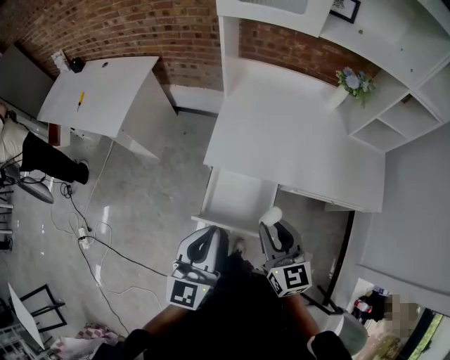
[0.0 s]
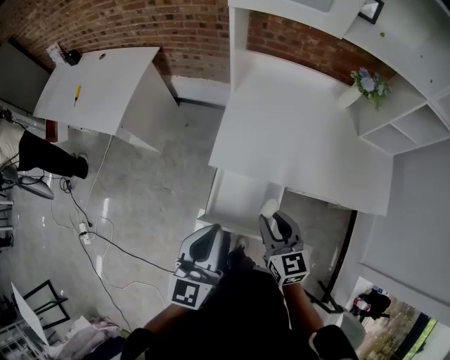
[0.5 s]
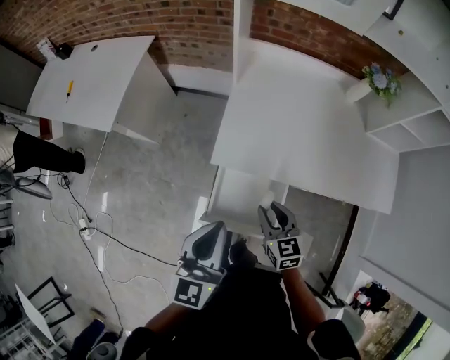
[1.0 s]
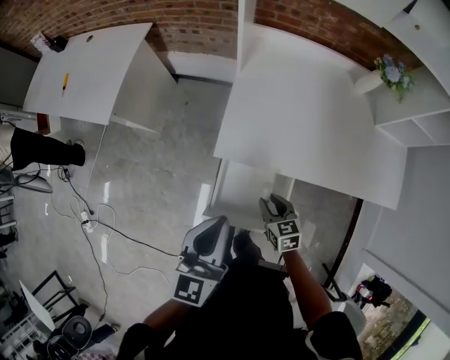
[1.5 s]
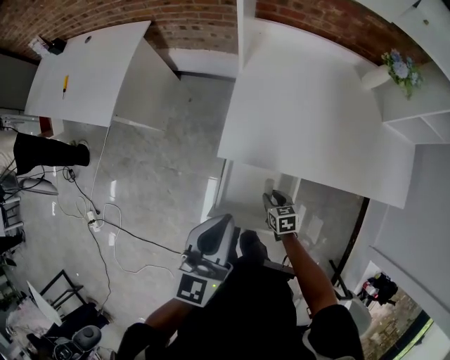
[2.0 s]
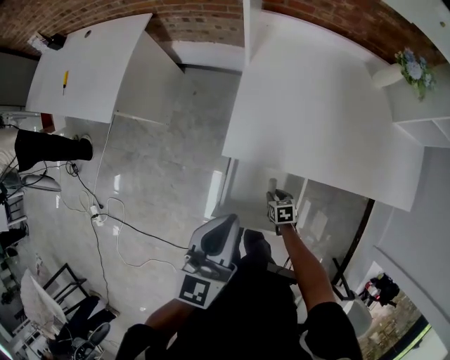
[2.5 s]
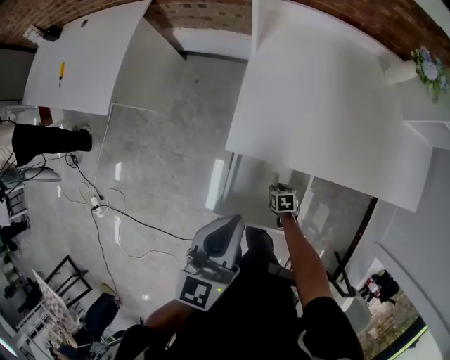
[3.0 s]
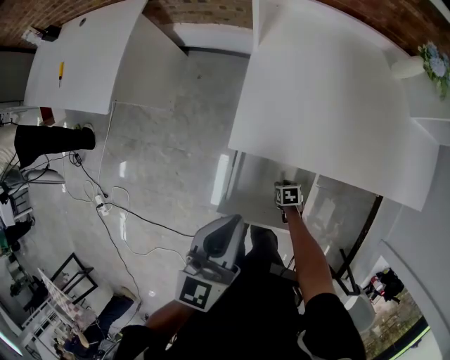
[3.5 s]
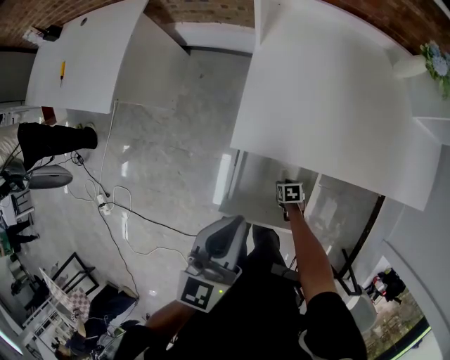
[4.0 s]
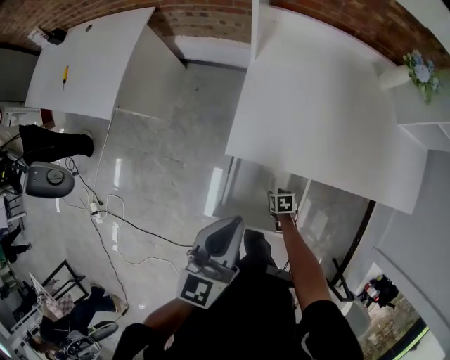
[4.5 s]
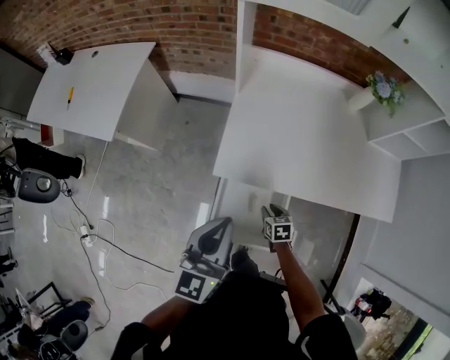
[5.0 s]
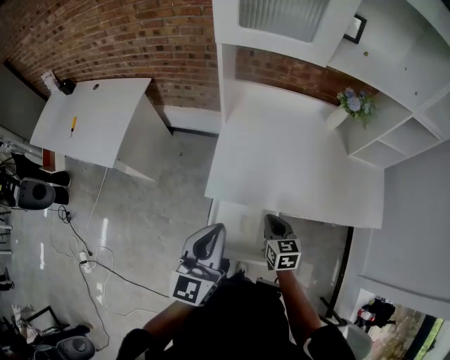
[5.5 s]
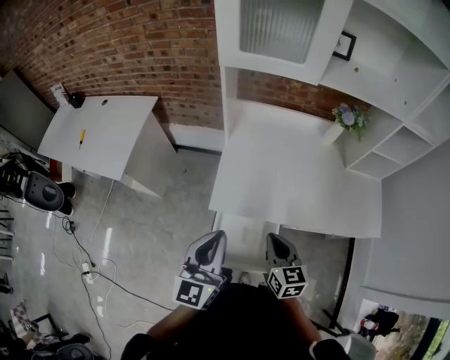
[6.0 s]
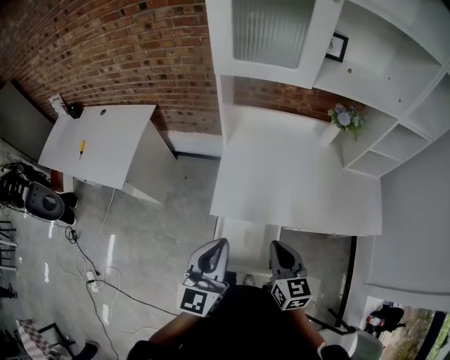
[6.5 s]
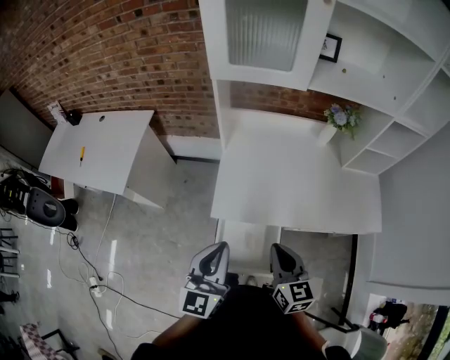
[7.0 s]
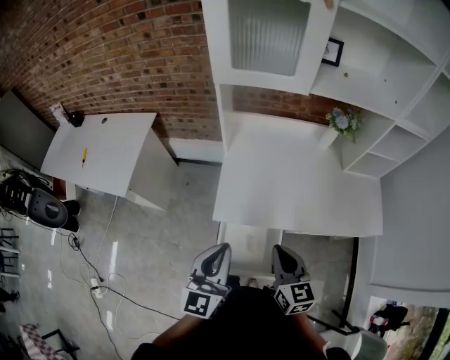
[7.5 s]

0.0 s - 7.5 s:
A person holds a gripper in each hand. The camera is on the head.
0.0 s - 2.0 s: The left gripper heads forward and downward, covering roughly 15 cm. Meanwhile the right gripper heads downward, covering about 40 cm, and tilts its fingers about 40 degrees downward.
2.0 s - 4.0 s: The right gripper goes roughly 20 cm downward, and swivels some 20 degrees. The left gripper moves downward, some 5 cm.
4.0 s - 5.5 s: The left gripper travels upward by about 15 cm, while the right gripper goes approximately 40 cm upward, angles its fingers upward, by approximately 40 degrees, and closes.
5.5 s - 7.5 s: The right gripper moves upward, roughly 20 cm.

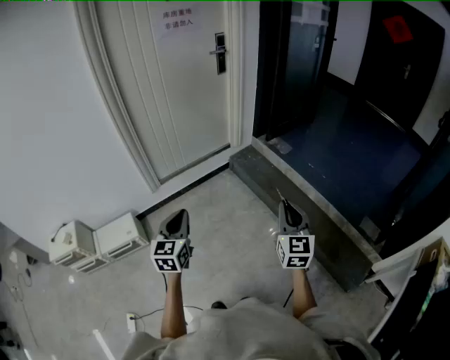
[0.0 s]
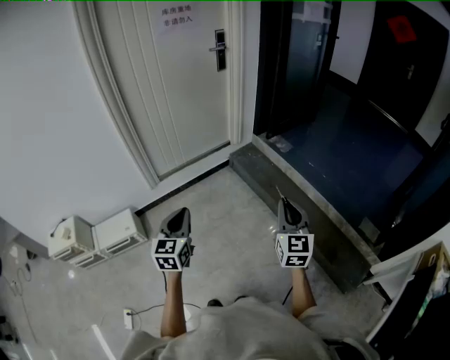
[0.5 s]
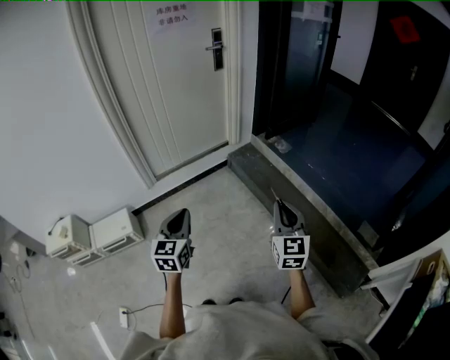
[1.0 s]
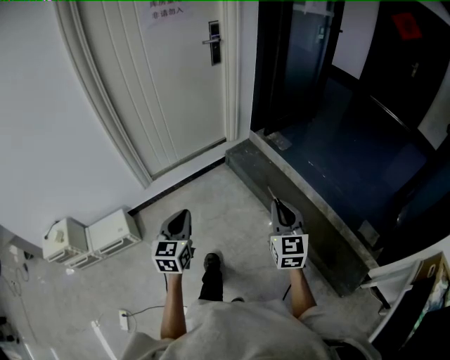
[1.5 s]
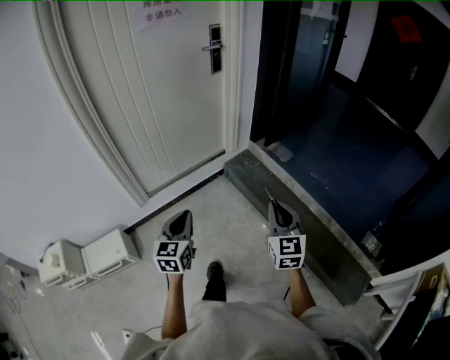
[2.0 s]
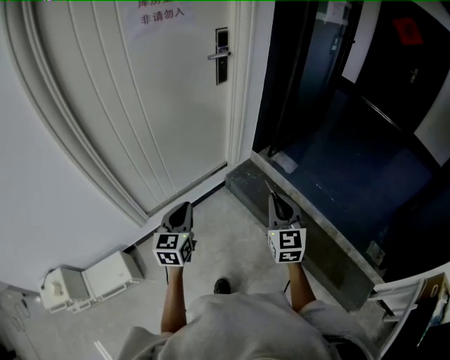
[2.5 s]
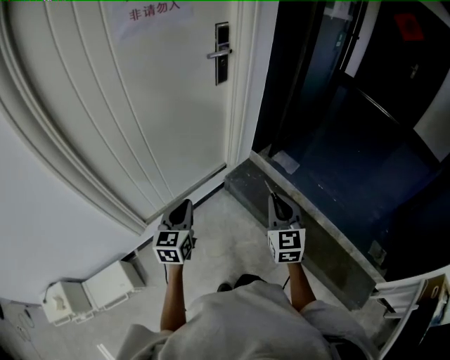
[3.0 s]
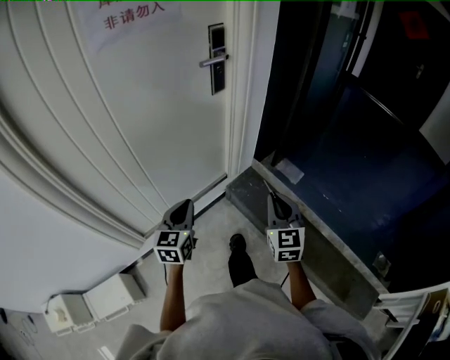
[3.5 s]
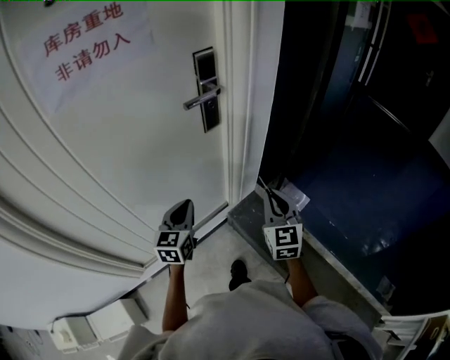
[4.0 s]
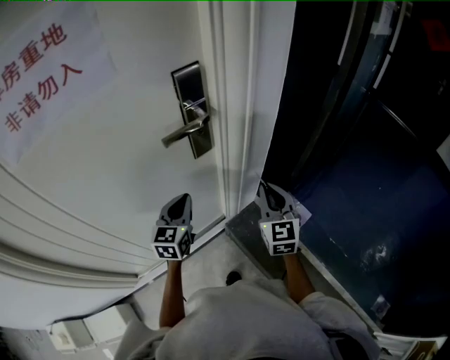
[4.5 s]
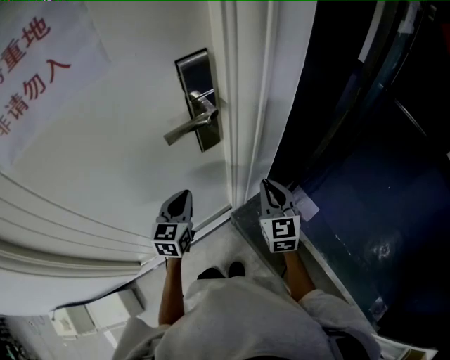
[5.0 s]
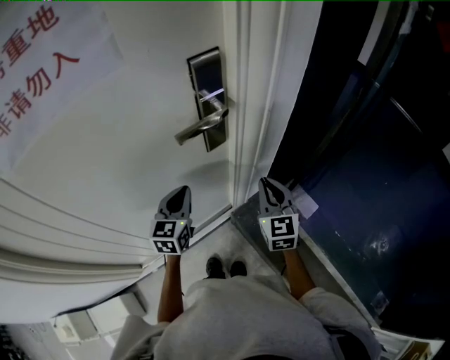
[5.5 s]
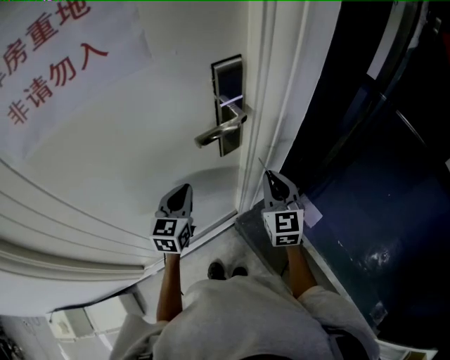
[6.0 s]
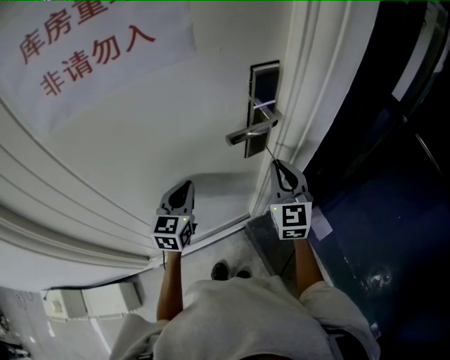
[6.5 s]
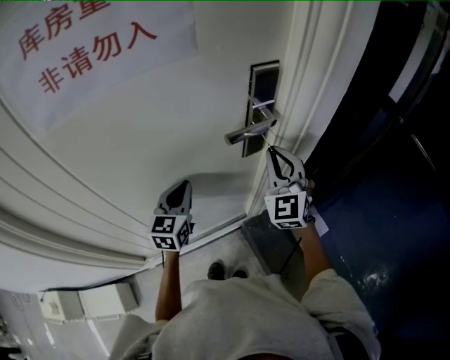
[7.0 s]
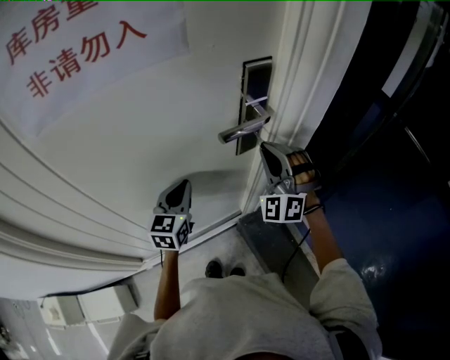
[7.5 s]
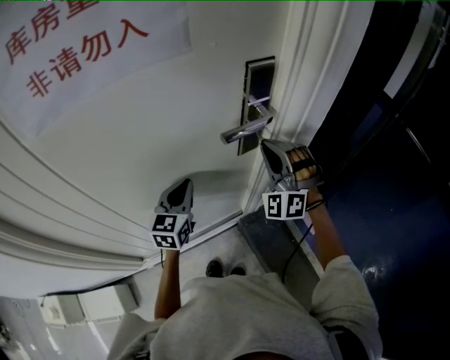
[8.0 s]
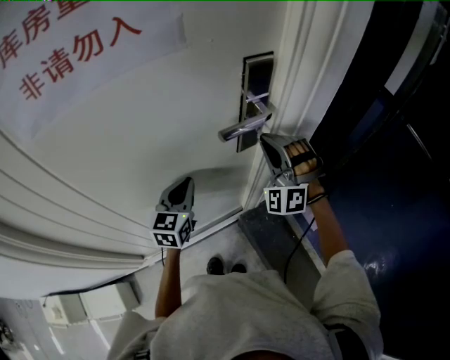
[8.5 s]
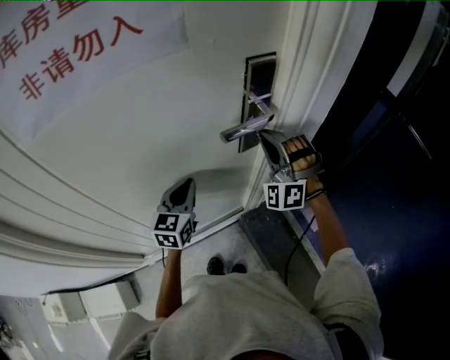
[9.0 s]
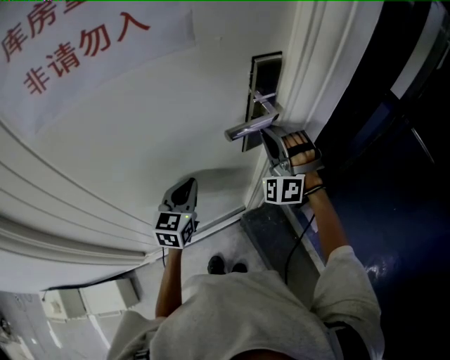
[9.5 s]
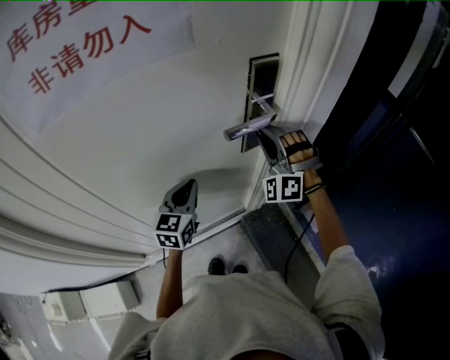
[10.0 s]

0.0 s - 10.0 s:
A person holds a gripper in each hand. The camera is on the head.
0.0 s - 2.0 s: Both grippers travel together forward, approximately 20 cm.
2.0 s - 4.0 s: The two grippers travel together, forward, some 60 cm.
4.0 s - 6.0 s: Both grippers move forward, roughly 20 cm.
6.0 s - 8.0 s: The right gripper heads to the left, upward and forward, covering approximately 10 cm, and twists approximately 70 degrees counterclockwise, seen from behind.
8.0 s - 10.0 s: The grippers move only a little.

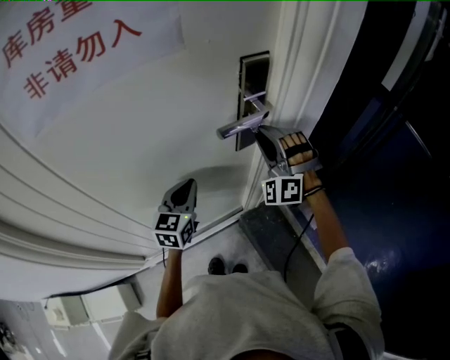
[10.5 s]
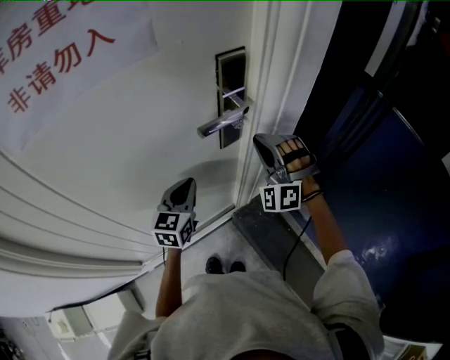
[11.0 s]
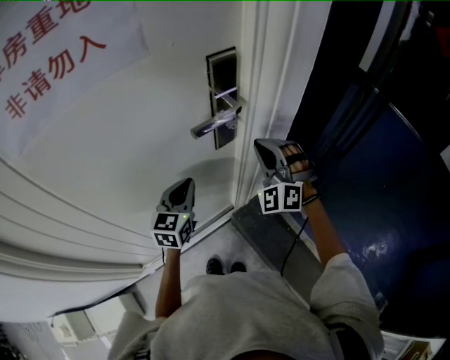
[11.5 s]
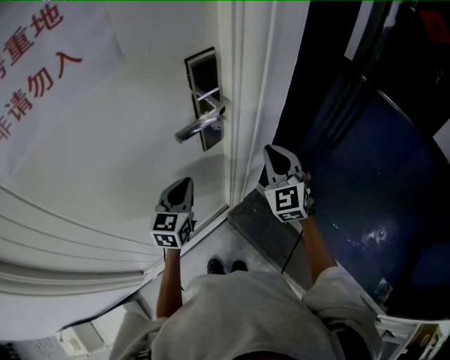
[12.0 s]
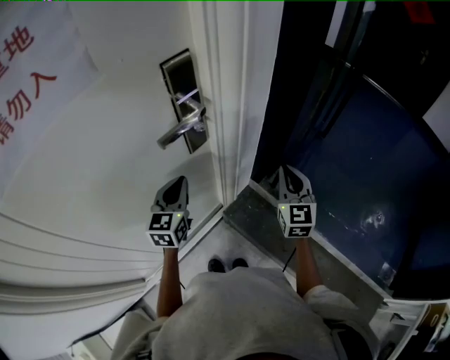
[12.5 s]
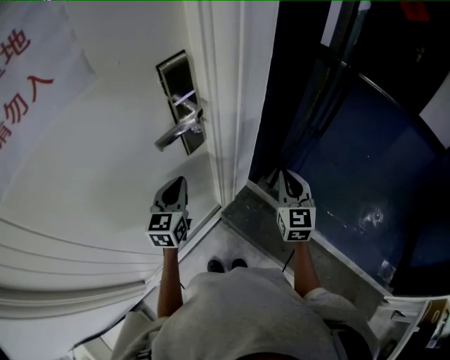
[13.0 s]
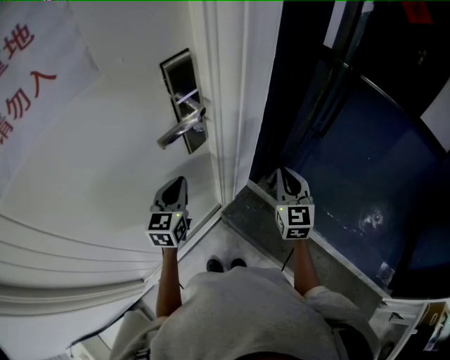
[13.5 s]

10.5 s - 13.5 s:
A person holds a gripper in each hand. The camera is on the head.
10.5 s - 12.0 s: The right gripper moves to the right and backward, about 15 cm, rolls clockwise, seen from behind, by roughly 50 degrees, and closes up, while the left gripper goes about 5 cm to the right.
12.0 s - 13.5 s: The right gripper travels to the right and downward by approximately 10 cm, and swivels approximately 30 degrees.

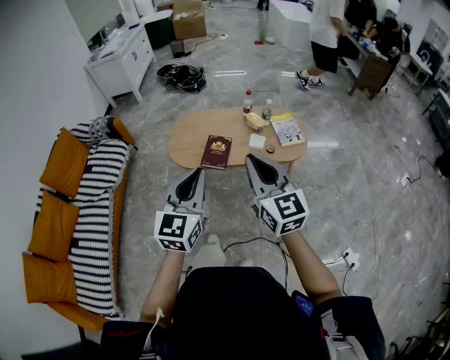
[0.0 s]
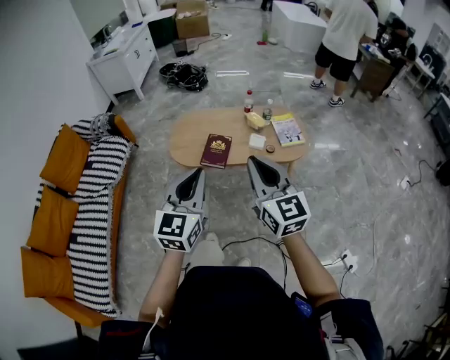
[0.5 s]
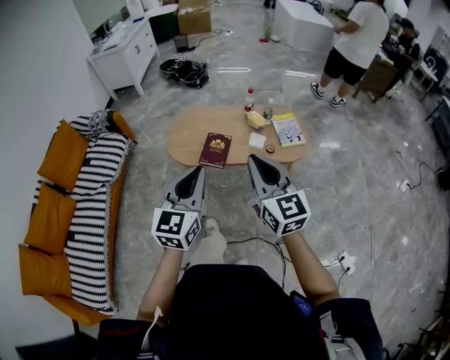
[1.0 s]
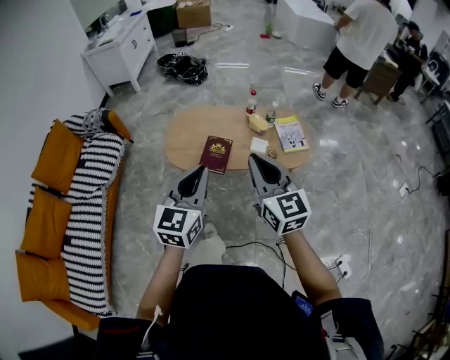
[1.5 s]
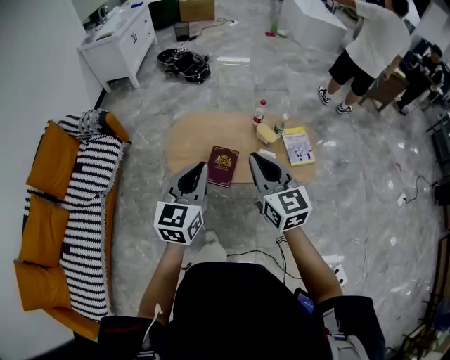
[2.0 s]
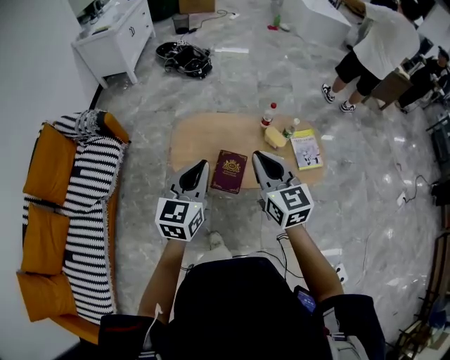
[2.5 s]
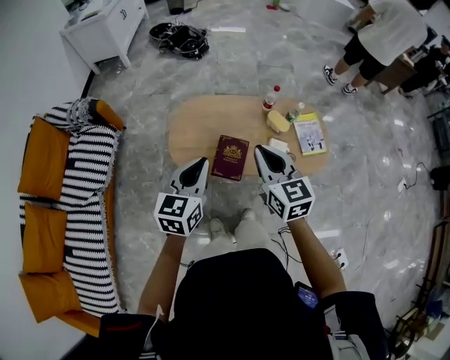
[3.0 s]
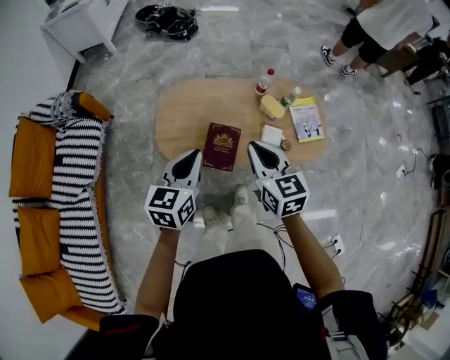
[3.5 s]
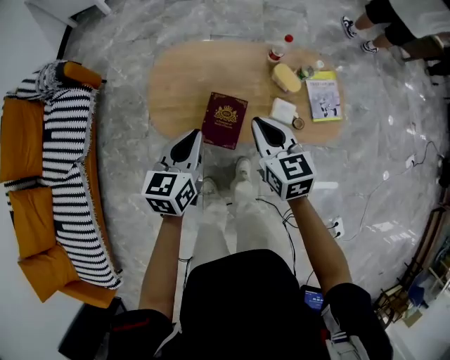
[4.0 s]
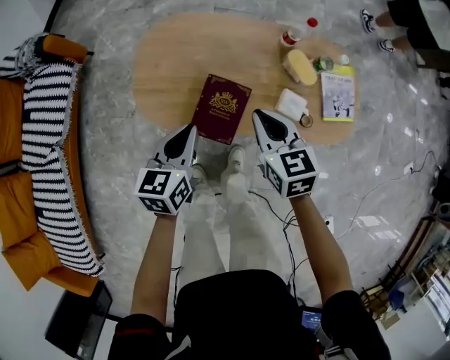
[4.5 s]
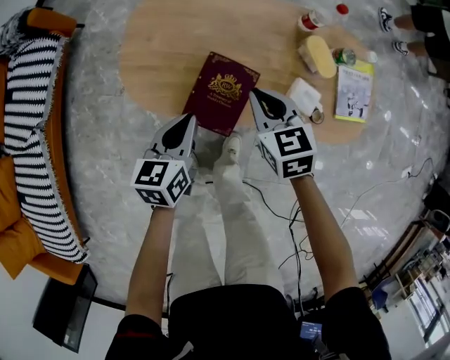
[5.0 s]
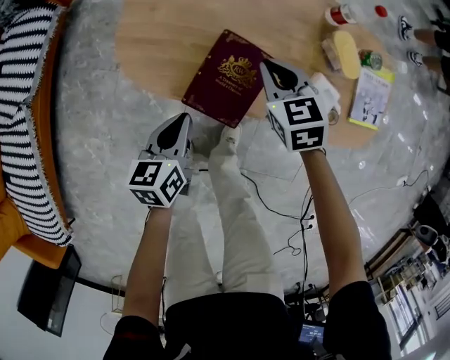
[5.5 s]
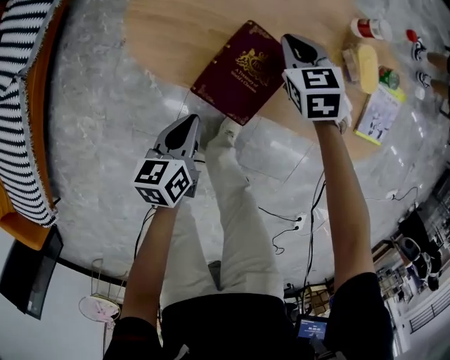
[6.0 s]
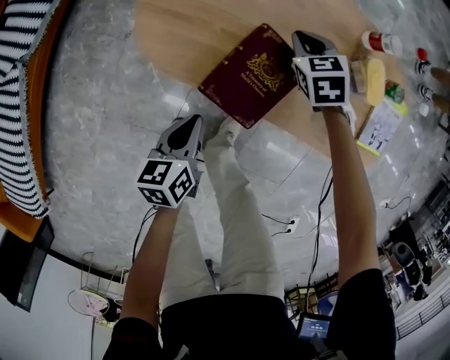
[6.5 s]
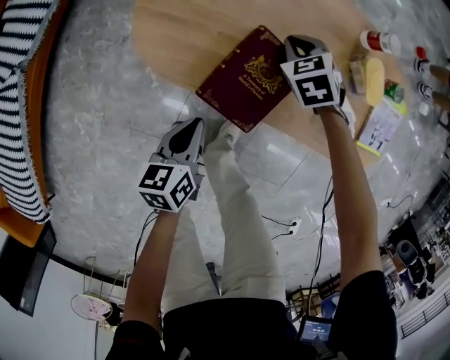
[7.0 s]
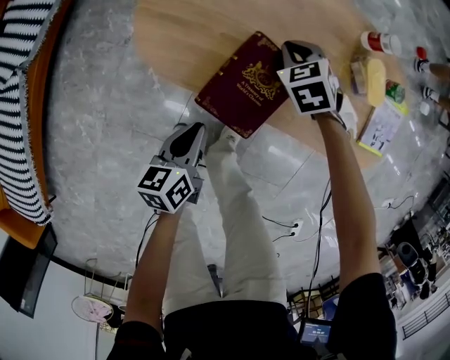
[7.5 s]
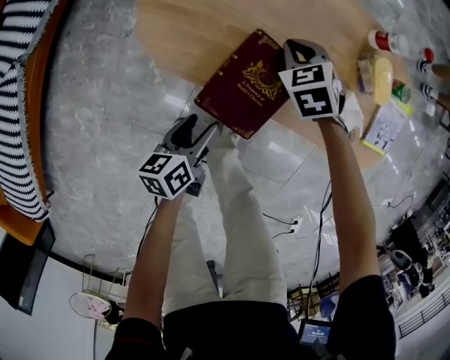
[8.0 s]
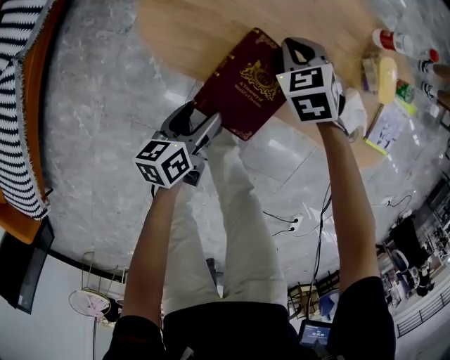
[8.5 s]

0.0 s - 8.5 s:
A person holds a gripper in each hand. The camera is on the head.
0.0 s - 2.0 s: The grippers both shift forward by roughly 20 cm.
2.0 s - 4.0 s: Both grippers travel together downward and forward, approximately 30 cm. The right gripper rotates about 20 degrees, while the left gripper rotates some 30 degrees.
4.0 s - 6.5 s: The left gripper is displaced downward by some 30 cm, and swivels about 40 degrees. Meanwhile the right gripper goes about 40 cm downward and forward, and changes its angle by roughly 40 degrees.
6.5 s - 8.5 s: The left gripper shifts about 5 cm downward, and opens its fingers, while the right gripper travels backward by some 5 cm.
